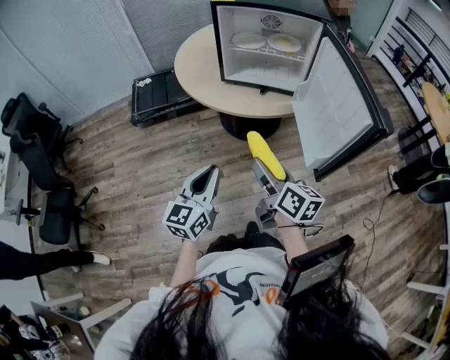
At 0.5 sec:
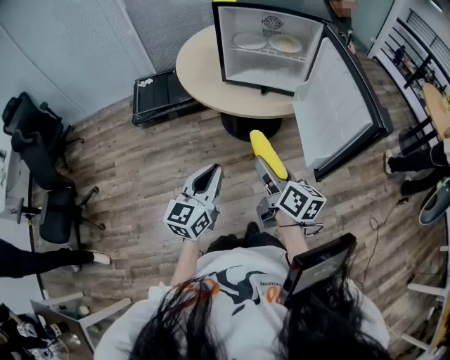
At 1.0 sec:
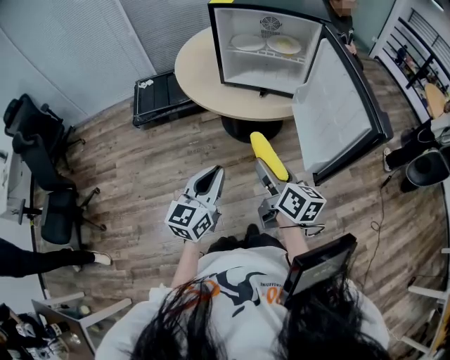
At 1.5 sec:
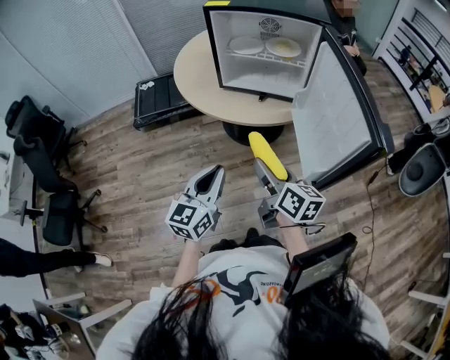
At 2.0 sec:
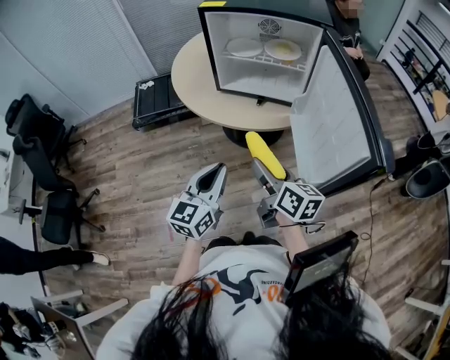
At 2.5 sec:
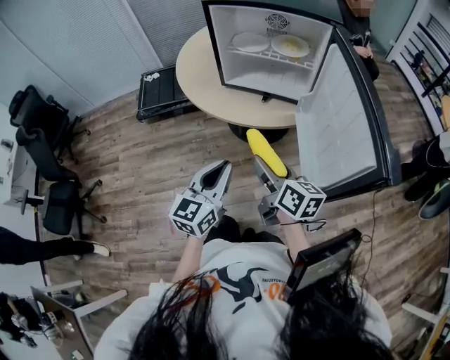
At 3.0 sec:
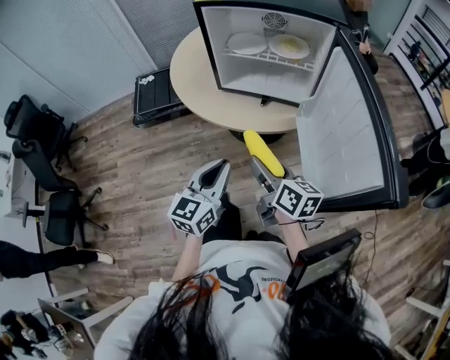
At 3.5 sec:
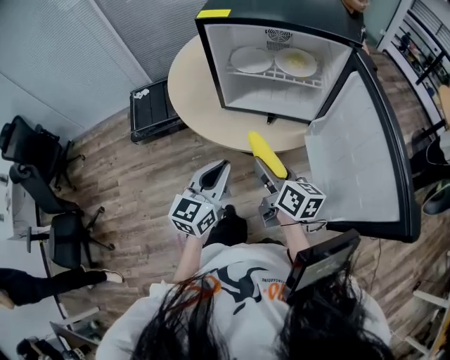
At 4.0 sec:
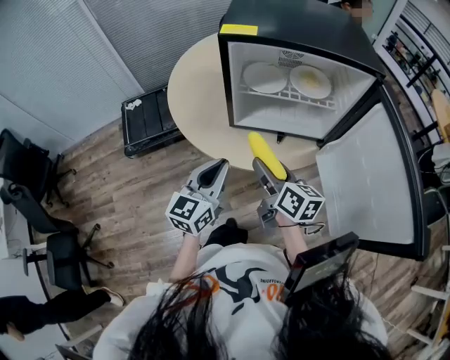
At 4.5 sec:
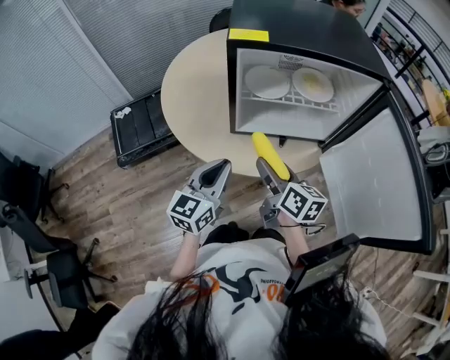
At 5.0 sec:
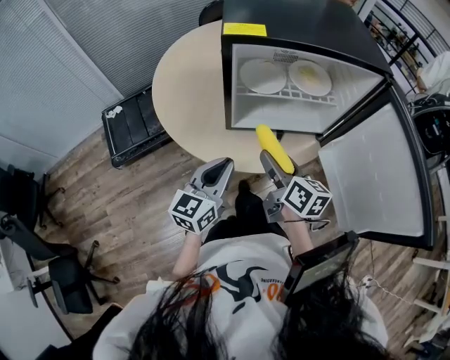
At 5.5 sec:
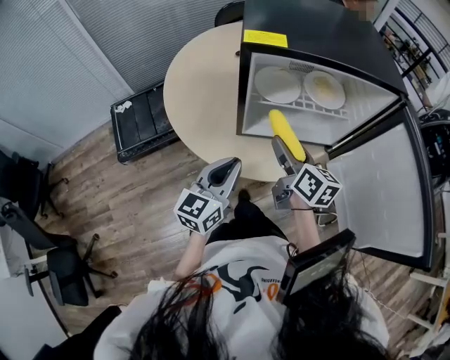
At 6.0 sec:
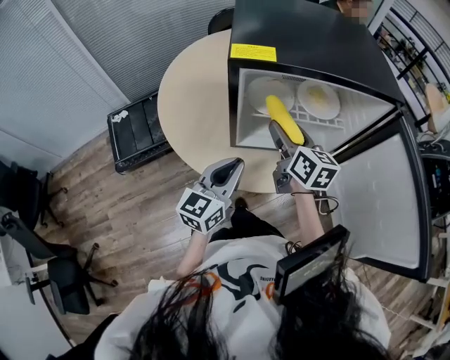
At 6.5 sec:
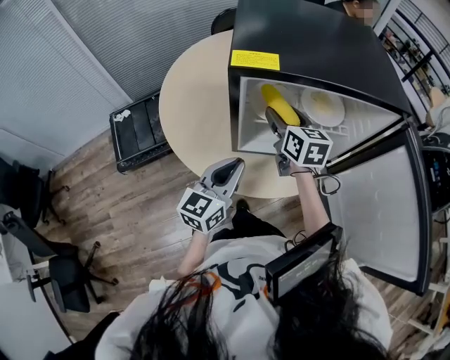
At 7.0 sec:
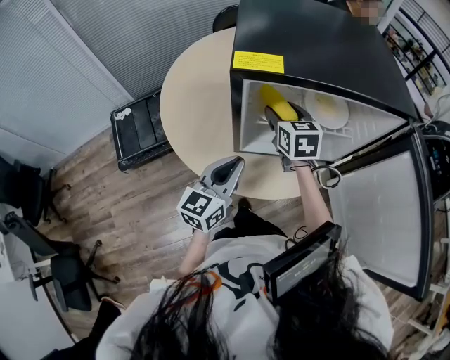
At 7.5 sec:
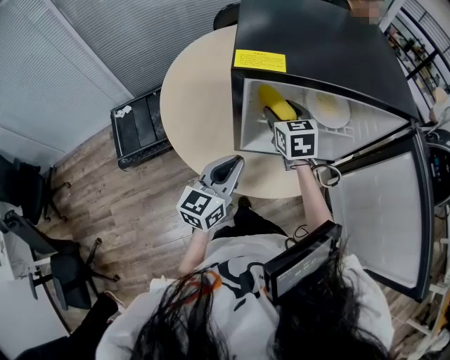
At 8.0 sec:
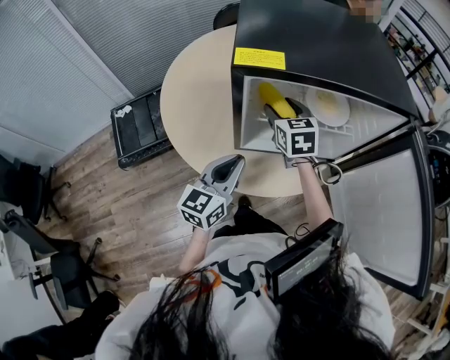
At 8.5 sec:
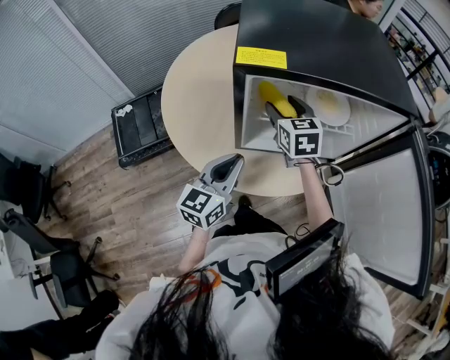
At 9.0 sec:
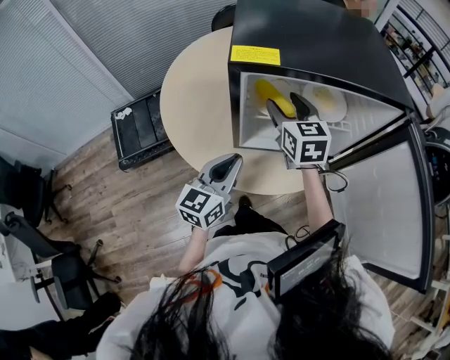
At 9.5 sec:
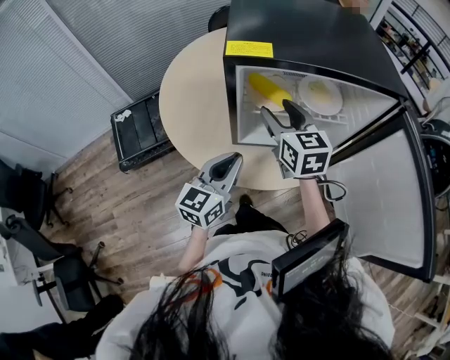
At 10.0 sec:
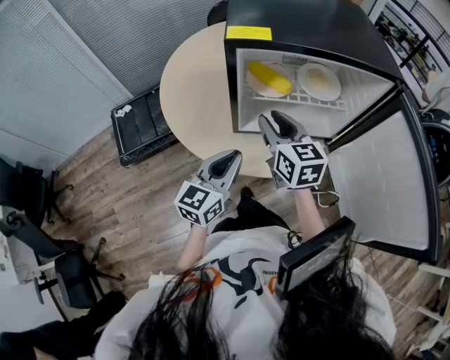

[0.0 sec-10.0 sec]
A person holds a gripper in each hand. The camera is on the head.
0.0 sec to 2.0 sec: The left gripper heads forward and to the right, covering some 10 cm. The right gripper heads forward, covering approximately 10 cm.
2.0 sec to 4.0 sec: The two grippers go about 25 cm forward and to the left.
4.0 sec to 6.0 sec: The left gripper heads forward, covering roughly 10 cm; the right gripper moves forward, some 20 cm.
6.0 sec to 8.0 sec: The right gripper shifts roughly 10 cm forward, and changes its angle by approximately 30 degrees.
8.0 sec to 10.0 sec: The left gripper goes some 5 cm backward, while the right gripper shifts about 15 cm backward, and closes its fingers.

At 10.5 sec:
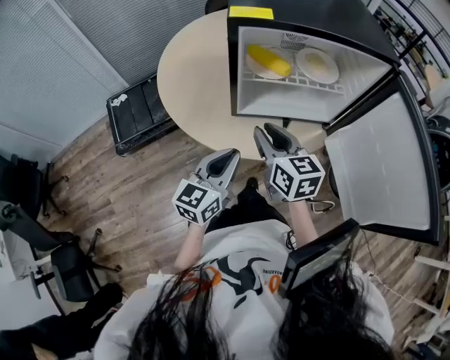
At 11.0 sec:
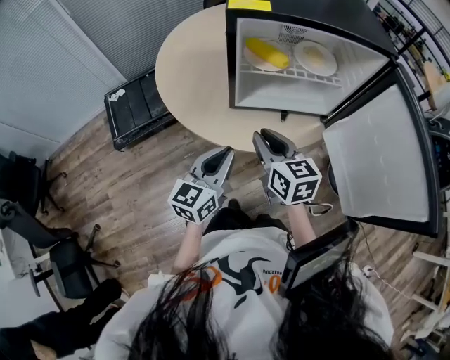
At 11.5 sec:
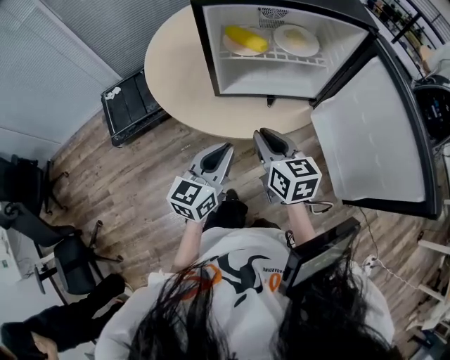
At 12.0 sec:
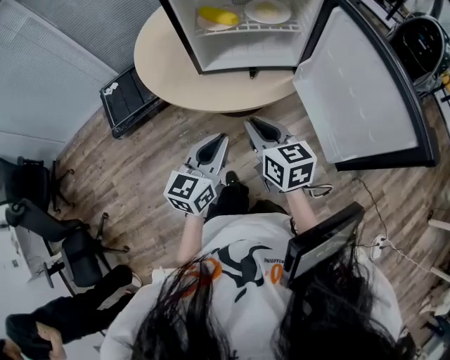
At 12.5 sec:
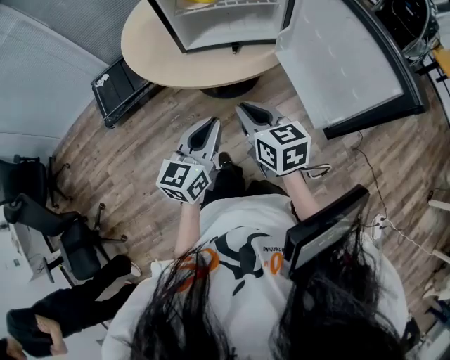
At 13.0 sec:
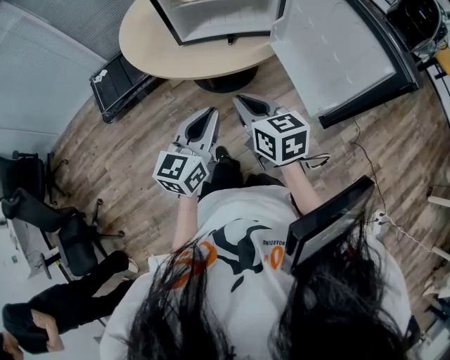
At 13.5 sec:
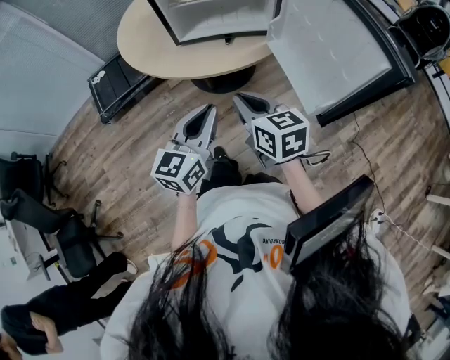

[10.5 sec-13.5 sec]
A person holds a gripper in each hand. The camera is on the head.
10.5 sec to 12.0 sec: The grippers both shift backward and to the right by about 15 cm.
12.0 sec to 13.5 sec: Both grippers move backward, about 5 cm.

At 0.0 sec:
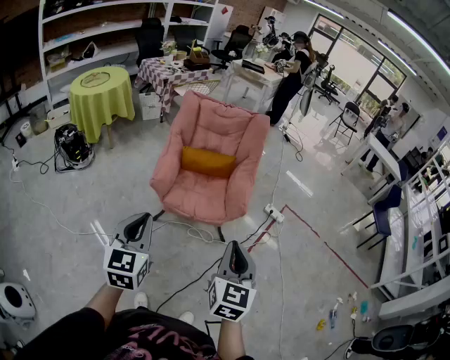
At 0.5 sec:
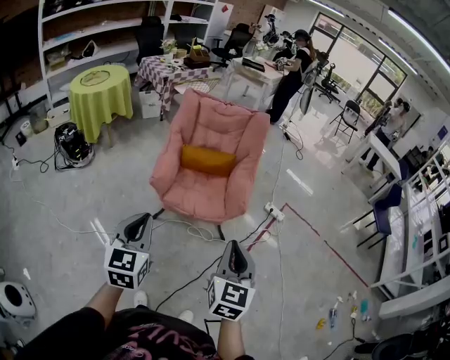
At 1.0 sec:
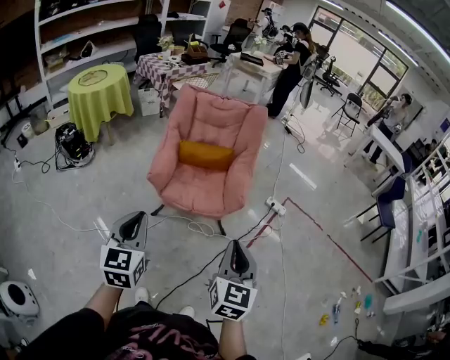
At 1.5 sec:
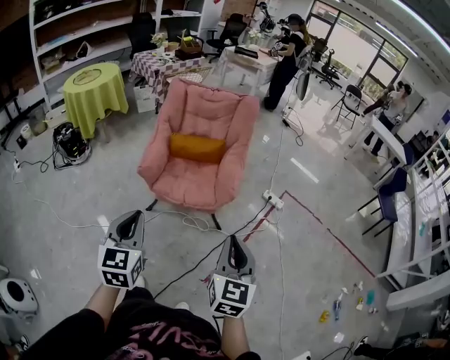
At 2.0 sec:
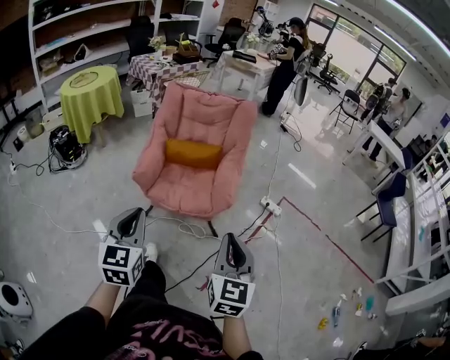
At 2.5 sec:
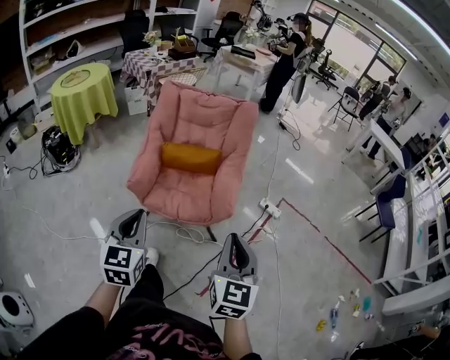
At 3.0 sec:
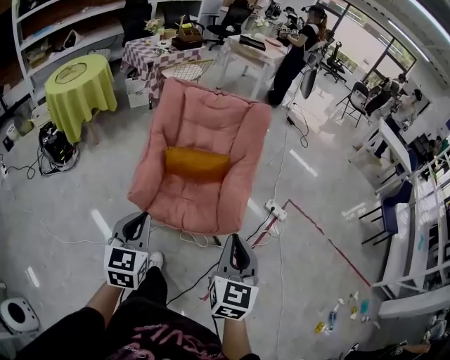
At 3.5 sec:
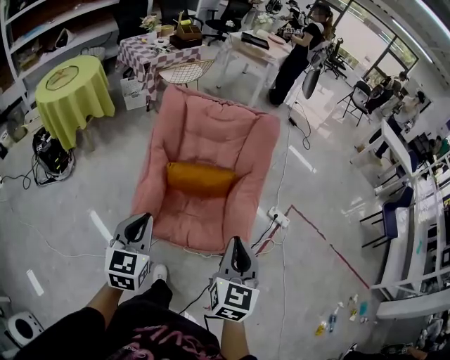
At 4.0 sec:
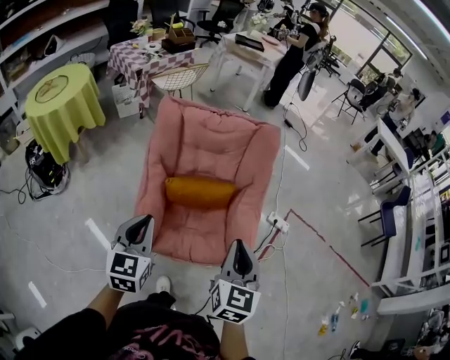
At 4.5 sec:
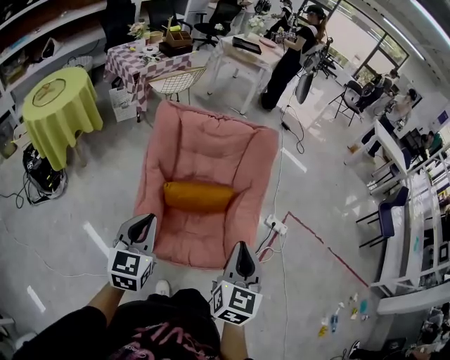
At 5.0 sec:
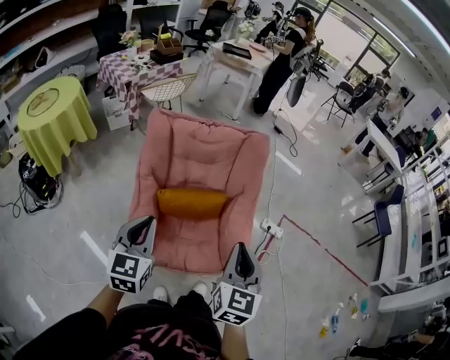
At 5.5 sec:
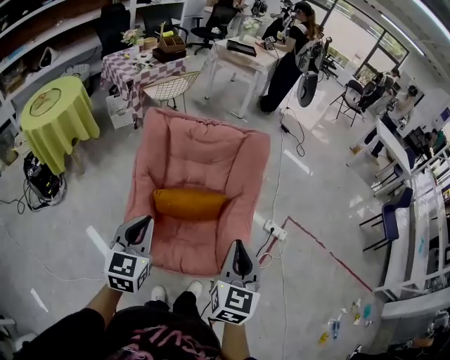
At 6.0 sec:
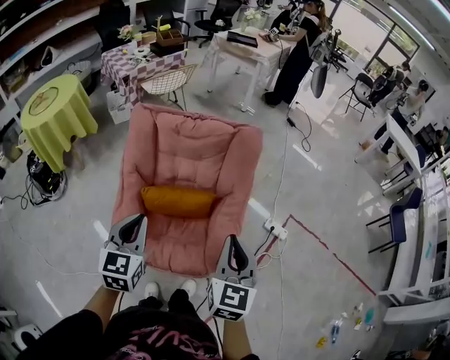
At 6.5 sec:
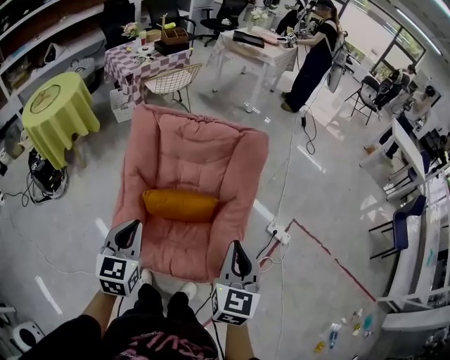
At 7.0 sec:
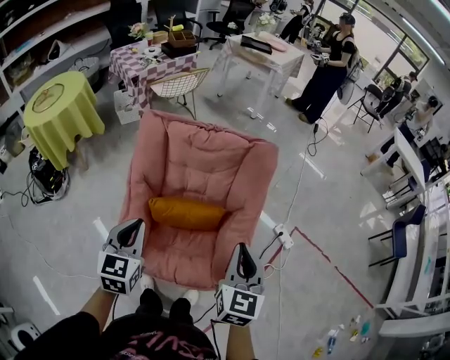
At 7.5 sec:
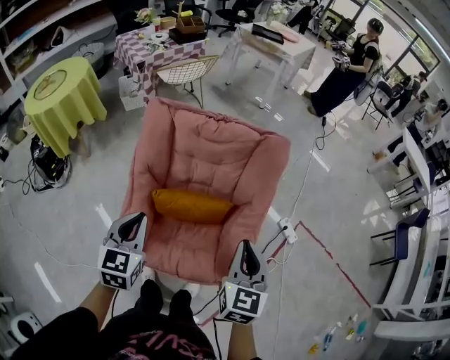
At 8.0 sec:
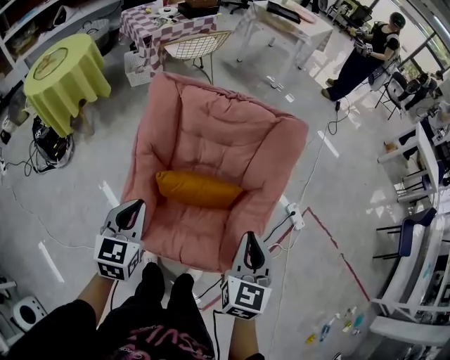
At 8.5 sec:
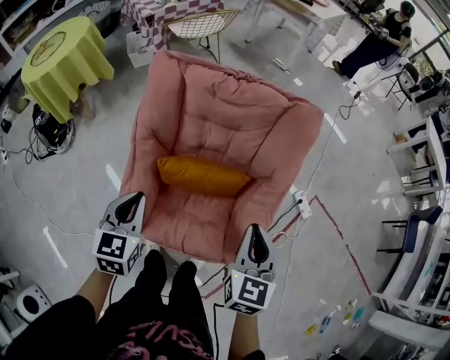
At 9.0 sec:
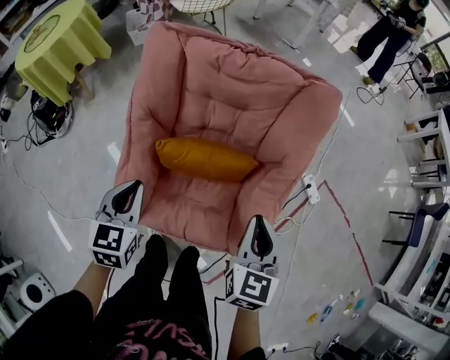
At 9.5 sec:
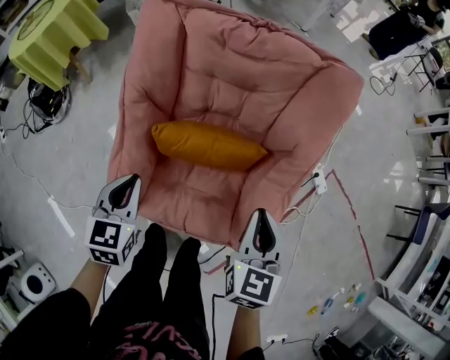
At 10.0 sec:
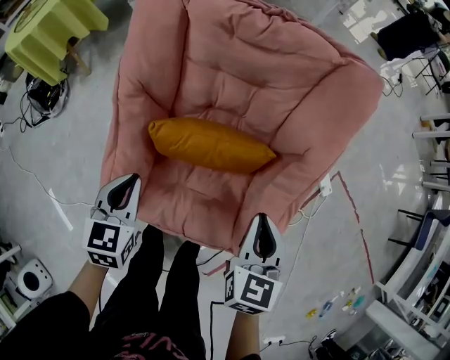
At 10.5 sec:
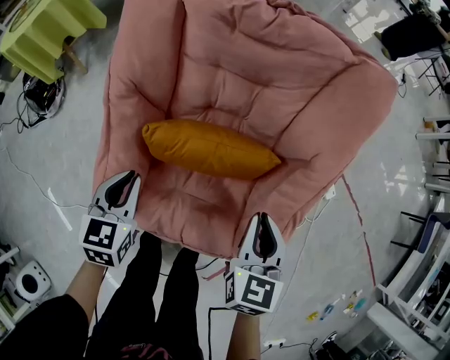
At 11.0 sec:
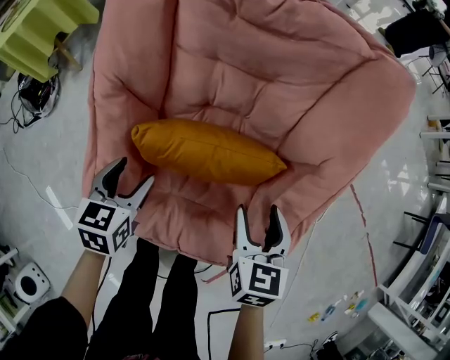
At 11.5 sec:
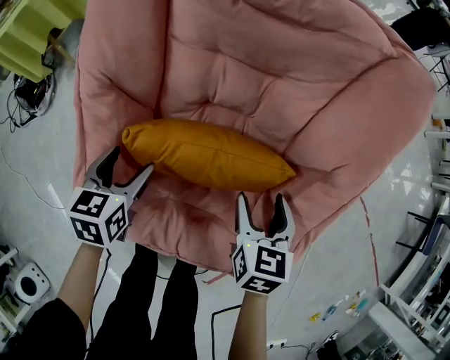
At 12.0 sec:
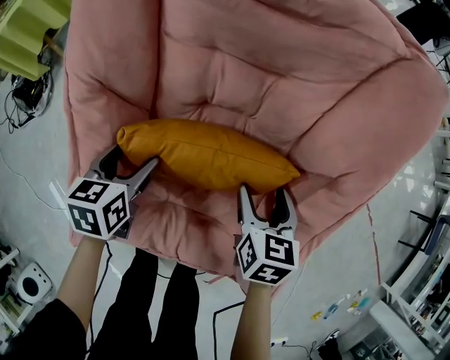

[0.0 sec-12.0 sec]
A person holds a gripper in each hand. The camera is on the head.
0.0 sec to 2.0 sec: The two grippers go roughly 10 cm to the right.
2.0 sec to 4.0 sec: The pair of grippers is taken forward, about 40 cm.
4.0 sec to 6.0 sec: The two grippers go approximately 15 cm to the right and forward.
6.0 sec to 8.0 sec: The right gripper goes approximately 10 cm downward and forward; the left gripper goes some 15 cm to the left, downward and forward.
8.0 sec to 10.0 sec: Both grippers move downward, some 20 cm.
10.0 sec to 12.0 sec: Both grippers travel together downward and forward, roughly 20 cm. The right gripper opens up. Meanwhile the left gripper opens its fingers.

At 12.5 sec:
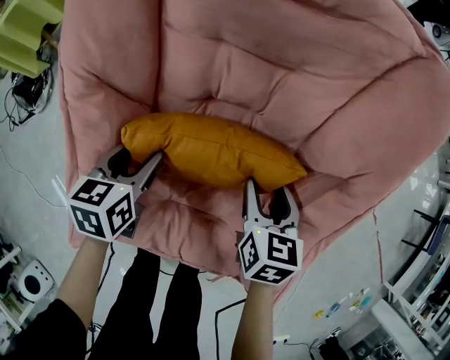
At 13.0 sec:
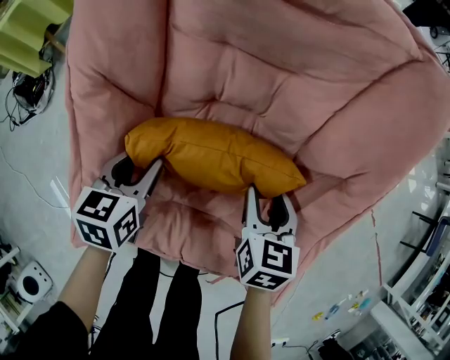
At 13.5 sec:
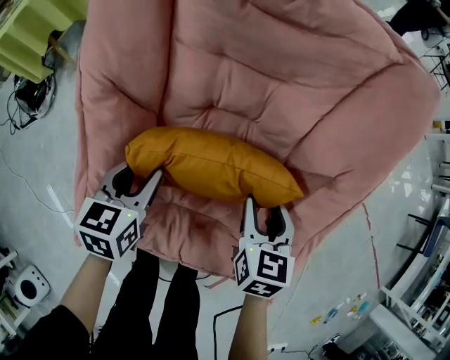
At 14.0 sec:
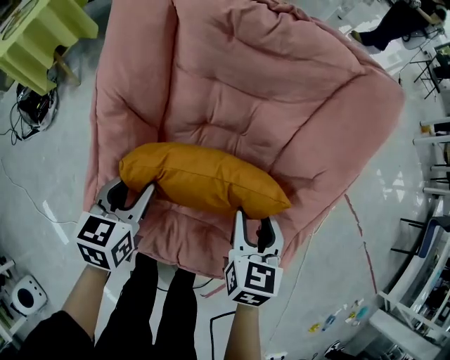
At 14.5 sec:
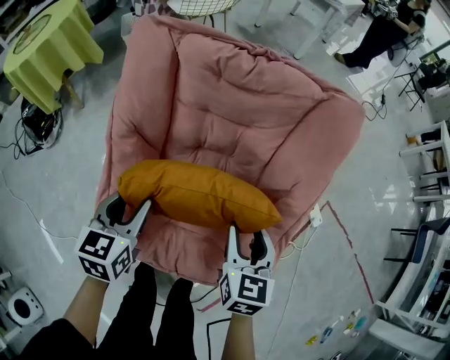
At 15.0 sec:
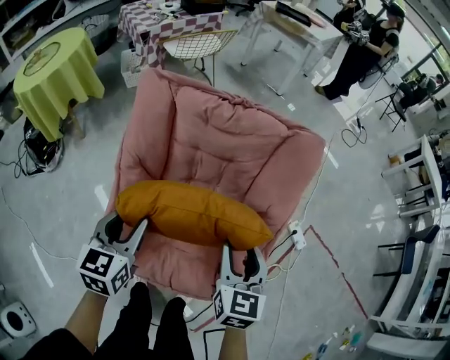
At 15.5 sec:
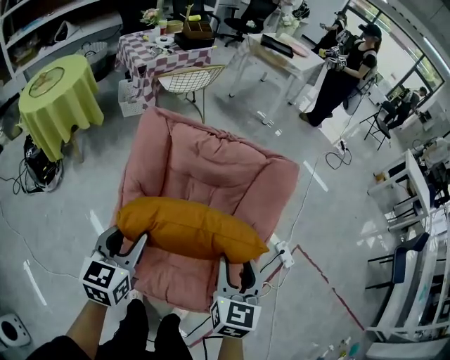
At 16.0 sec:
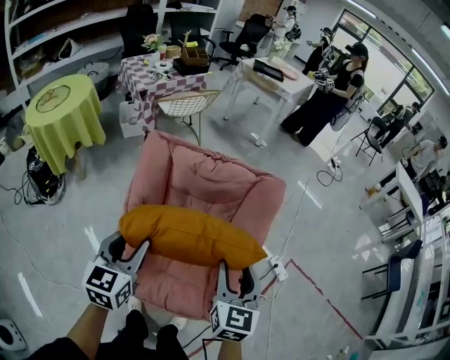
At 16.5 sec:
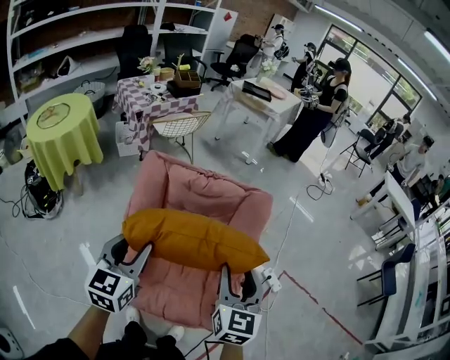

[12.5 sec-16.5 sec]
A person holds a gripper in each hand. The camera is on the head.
12.5 sec to 14.5 sec: The two grippers go about 20 cm upward.
14.5 sec to 16.5 sec: The two grippers go some 35 cm upward. The right gripper turns by roughly 20 degrees. Meanwhile the left gripper swivels approximately 20 degrees.
